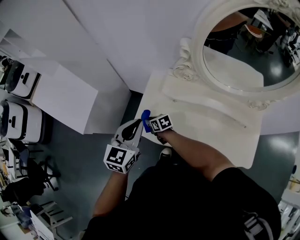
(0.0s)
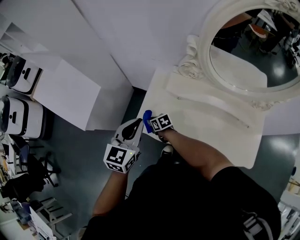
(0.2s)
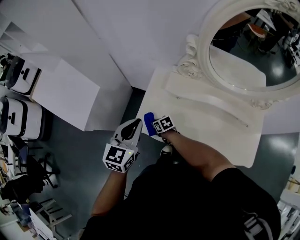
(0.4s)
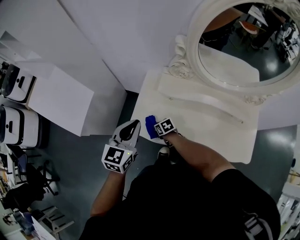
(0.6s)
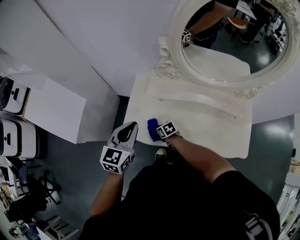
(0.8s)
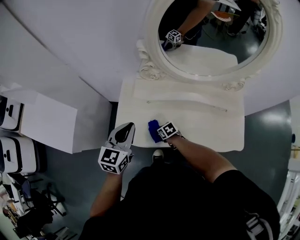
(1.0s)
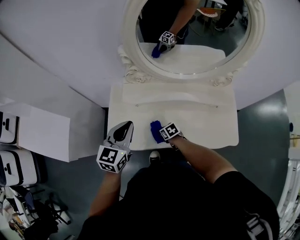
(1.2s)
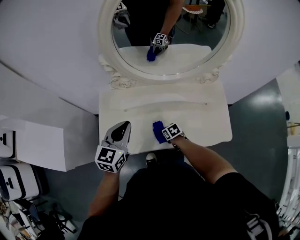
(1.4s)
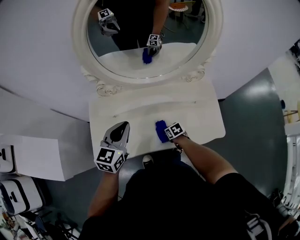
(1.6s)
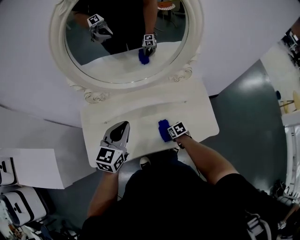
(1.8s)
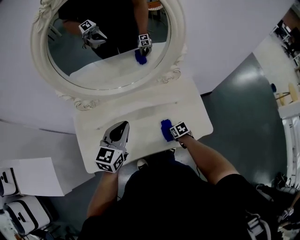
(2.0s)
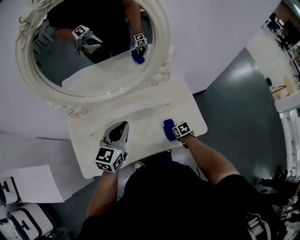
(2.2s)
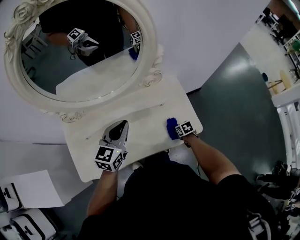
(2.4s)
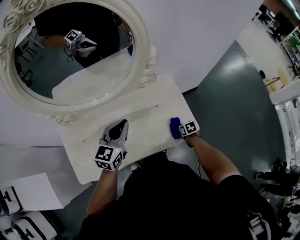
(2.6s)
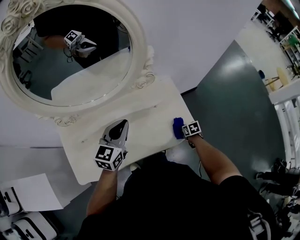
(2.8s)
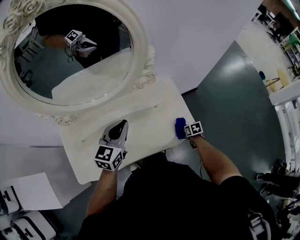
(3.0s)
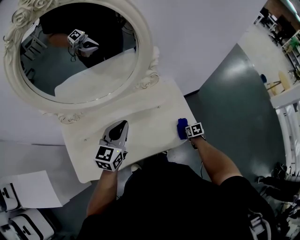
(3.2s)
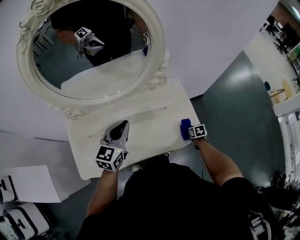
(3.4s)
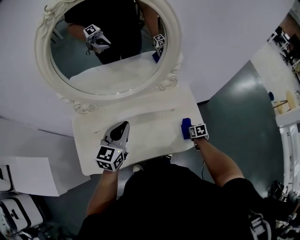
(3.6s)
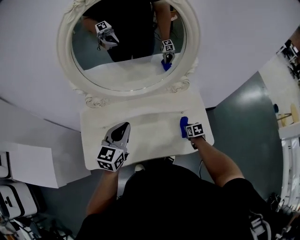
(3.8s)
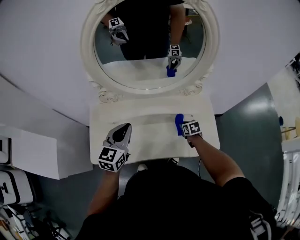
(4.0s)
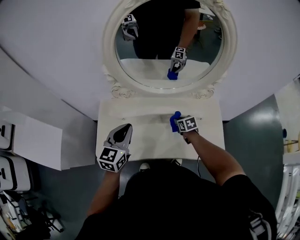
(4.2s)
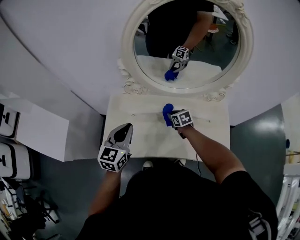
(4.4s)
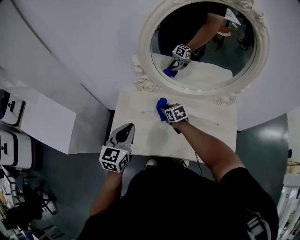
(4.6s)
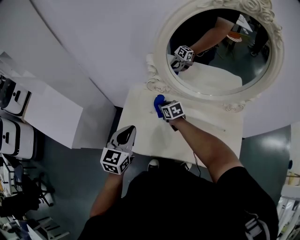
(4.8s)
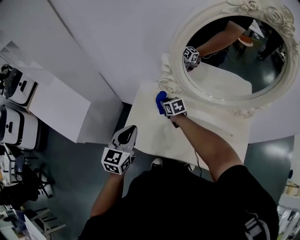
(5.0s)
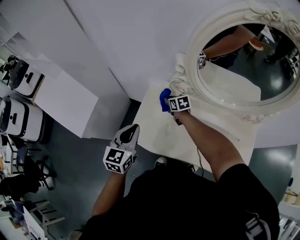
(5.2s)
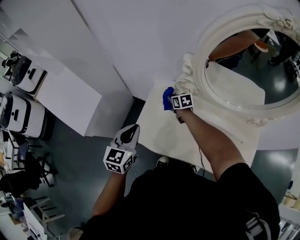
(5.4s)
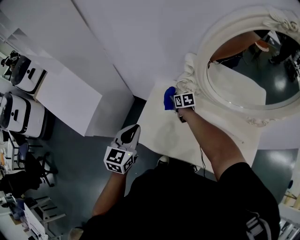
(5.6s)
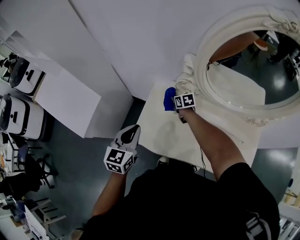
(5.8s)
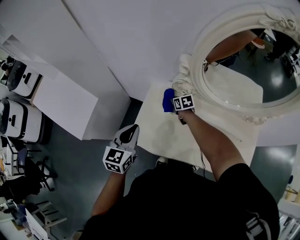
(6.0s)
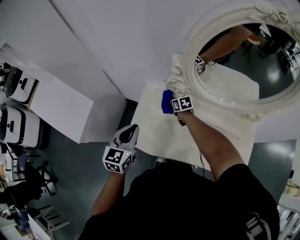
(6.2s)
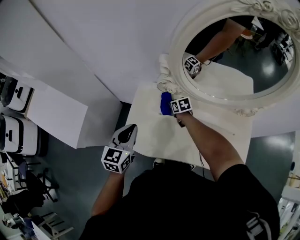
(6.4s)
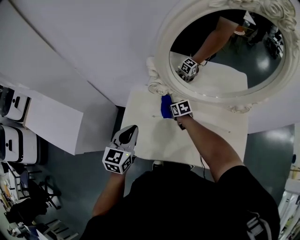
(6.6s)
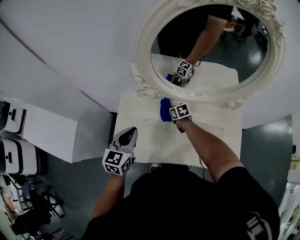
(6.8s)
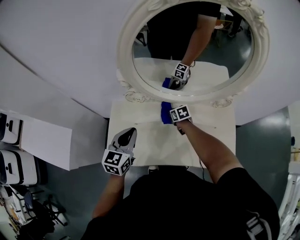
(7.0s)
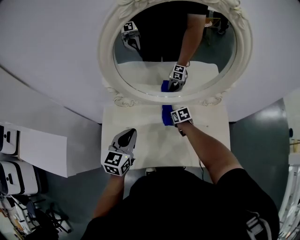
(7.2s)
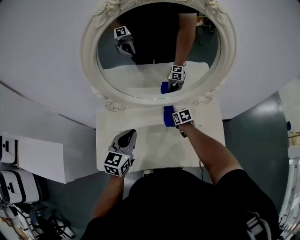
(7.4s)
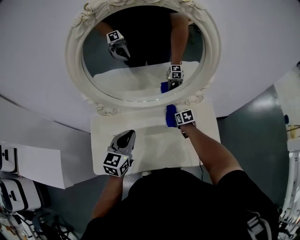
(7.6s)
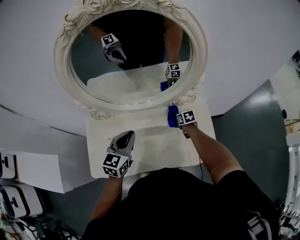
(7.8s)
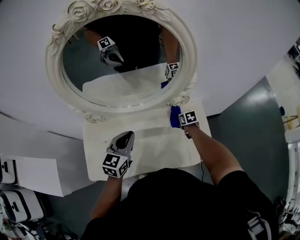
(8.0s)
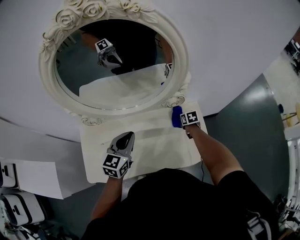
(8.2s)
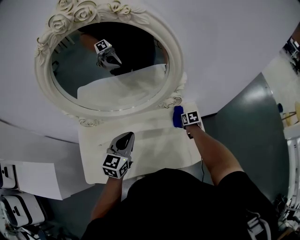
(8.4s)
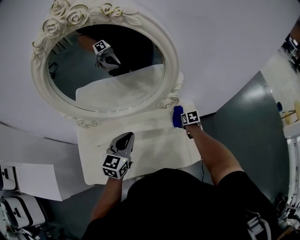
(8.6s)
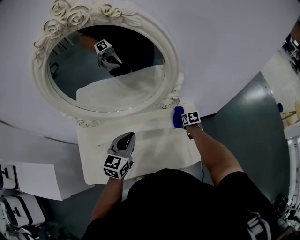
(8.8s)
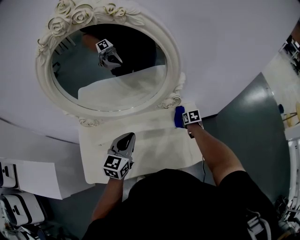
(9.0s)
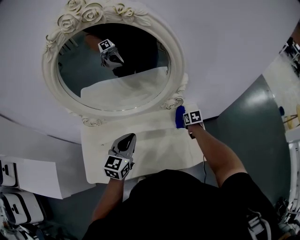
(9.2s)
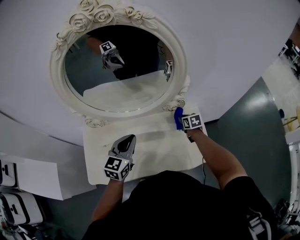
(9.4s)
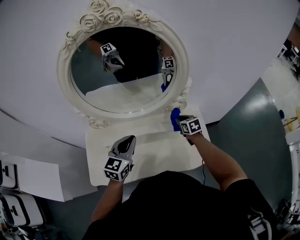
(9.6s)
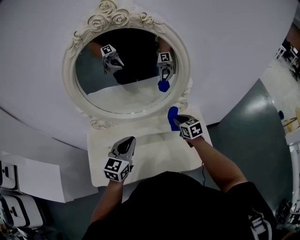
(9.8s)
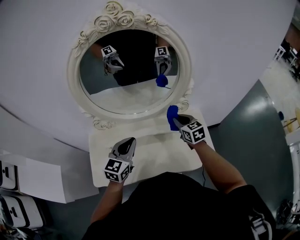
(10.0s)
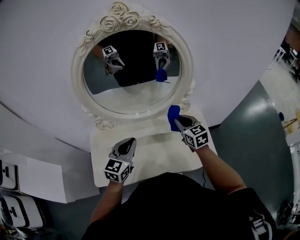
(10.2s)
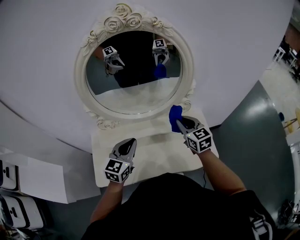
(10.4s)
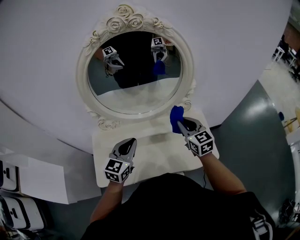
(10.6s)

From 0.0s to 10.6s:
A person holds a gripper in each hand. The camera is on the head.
From 0.0s to 1.6s: The right gripper changes place by approximately 40 cm, and rotates roughly 30 degrees, while the left gripper moves some 25 cm, and rotates approximately 30 degrees.
From 1.6s to 3.0s: The right gripper changes place by some 35 cm, and swivels approximately 30 degrees. Meanwhile the left gripper changes place by roughly 25 cm.
From 3.0s to 4.6s: The left gripper ends up about 35 cm from where it was, and rotates about 30 degrees. Meanwhile the right gripper moves roughly 60 cm, and rotates around the line of its fingers by approximately 40 degrees, counterclockwise from behind.
From 4.6s to 6.0s: The left gripper travels to the left by approximately 15 cm. The right gripper shifts approximately 20 cm to the left, forward and downward.
From 6.0s to 7.6s: The left gripper ends up about 35 cm from where it was, and changes its angle by approximately 30 degrees; the right gripper changes place by about 50 cm, and changes its angle by roughly 30 degrees.
From 7.6s to 9.0s: The right gripper goes approximately 20 cm to the right. Meanwhile the left gripper shifts some 10 cm to the right.
From 9.0s to 10.6s: The right gripper travels upward, to the left and backward by approximately 40 cm, and angles its fingers upward, by about 40 degrees. Meanwhile the left gripper travels to the left and backward by some 10 cm.

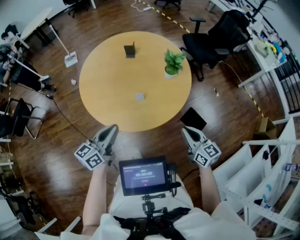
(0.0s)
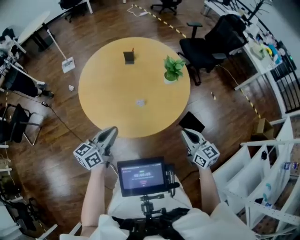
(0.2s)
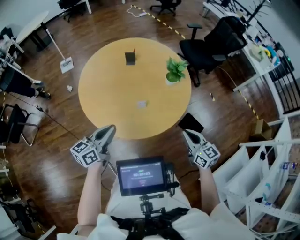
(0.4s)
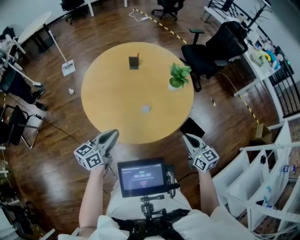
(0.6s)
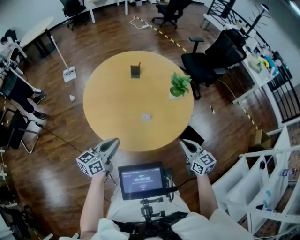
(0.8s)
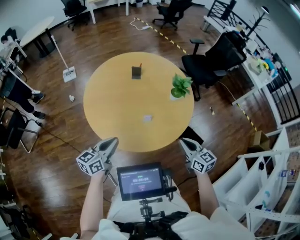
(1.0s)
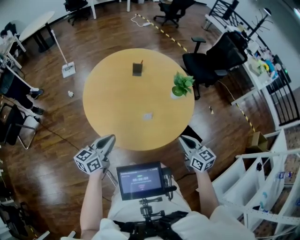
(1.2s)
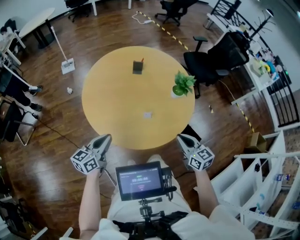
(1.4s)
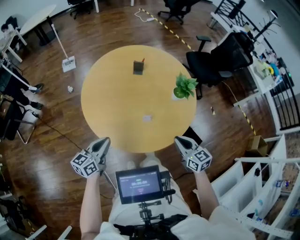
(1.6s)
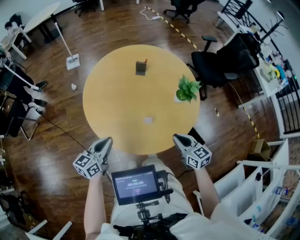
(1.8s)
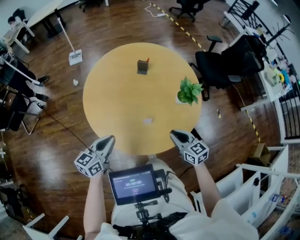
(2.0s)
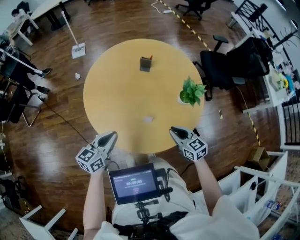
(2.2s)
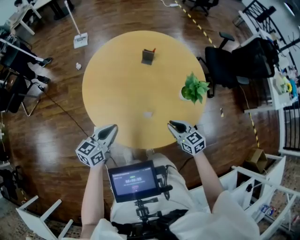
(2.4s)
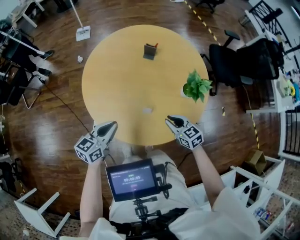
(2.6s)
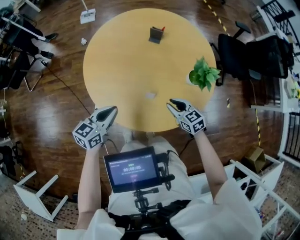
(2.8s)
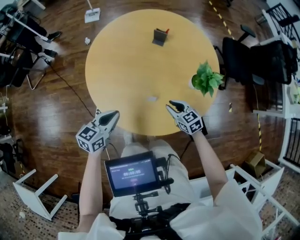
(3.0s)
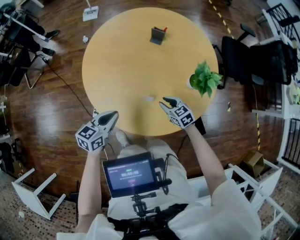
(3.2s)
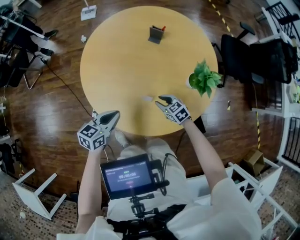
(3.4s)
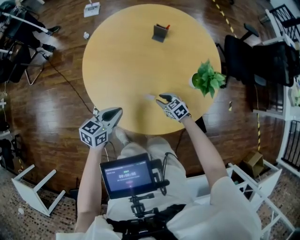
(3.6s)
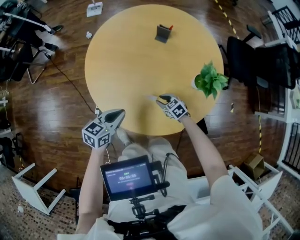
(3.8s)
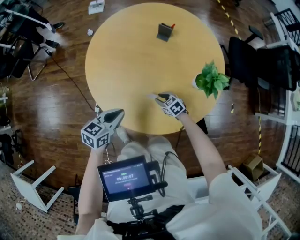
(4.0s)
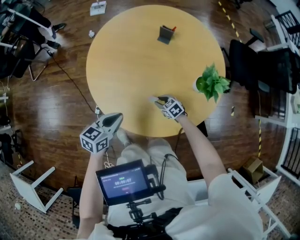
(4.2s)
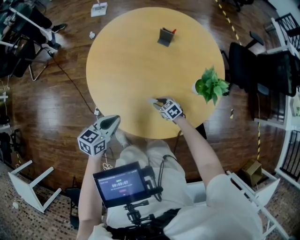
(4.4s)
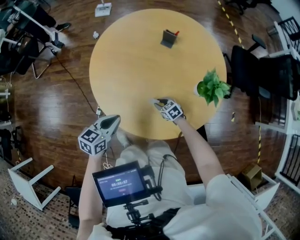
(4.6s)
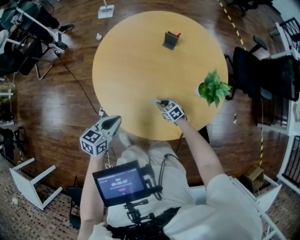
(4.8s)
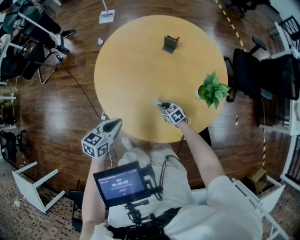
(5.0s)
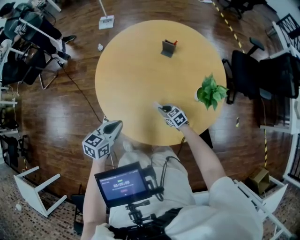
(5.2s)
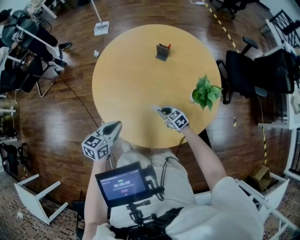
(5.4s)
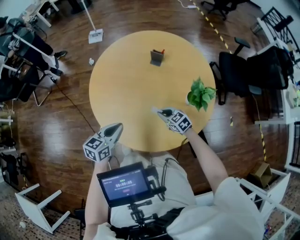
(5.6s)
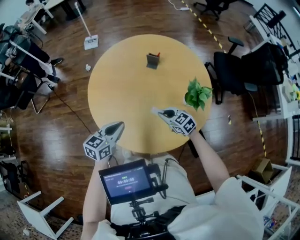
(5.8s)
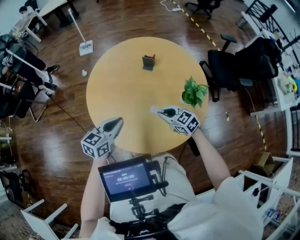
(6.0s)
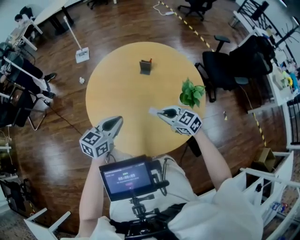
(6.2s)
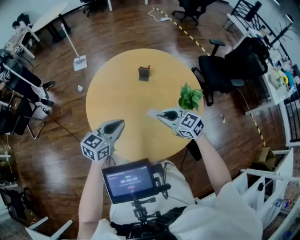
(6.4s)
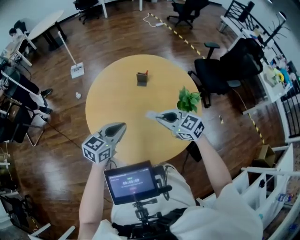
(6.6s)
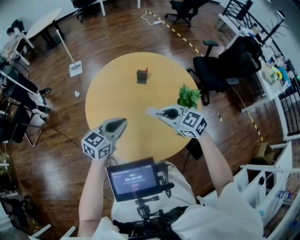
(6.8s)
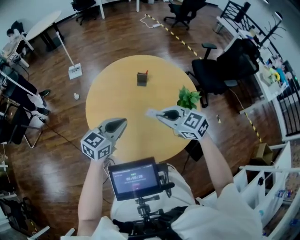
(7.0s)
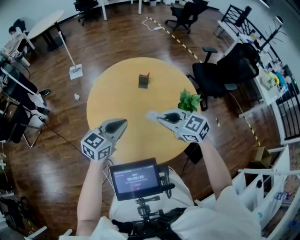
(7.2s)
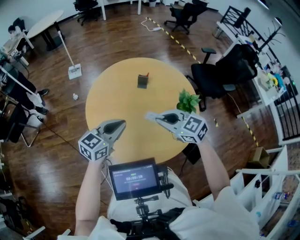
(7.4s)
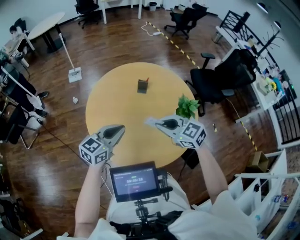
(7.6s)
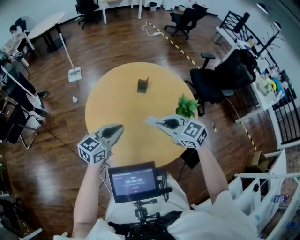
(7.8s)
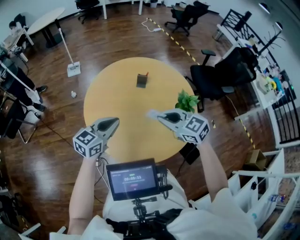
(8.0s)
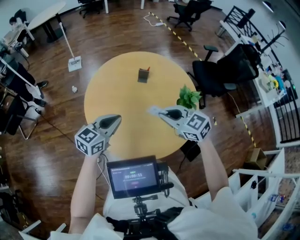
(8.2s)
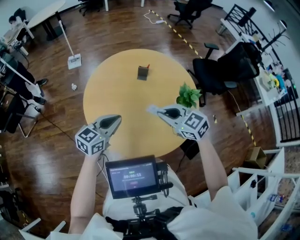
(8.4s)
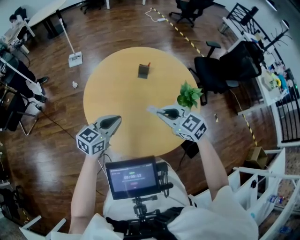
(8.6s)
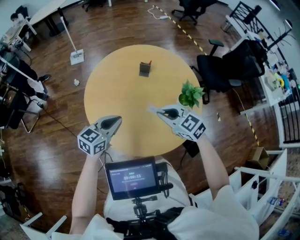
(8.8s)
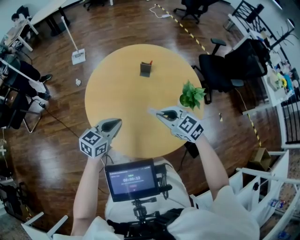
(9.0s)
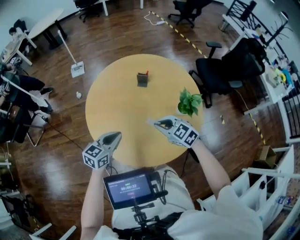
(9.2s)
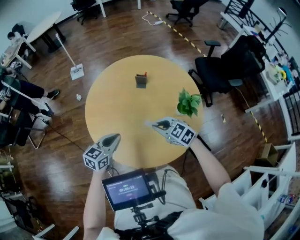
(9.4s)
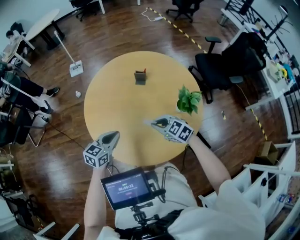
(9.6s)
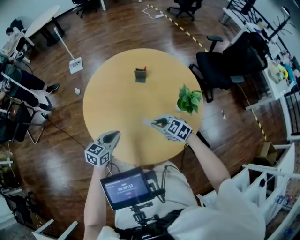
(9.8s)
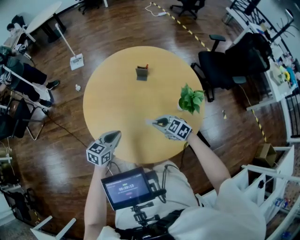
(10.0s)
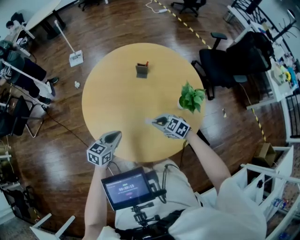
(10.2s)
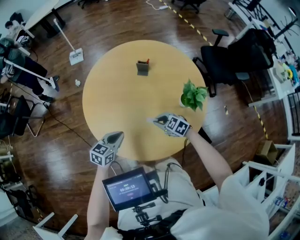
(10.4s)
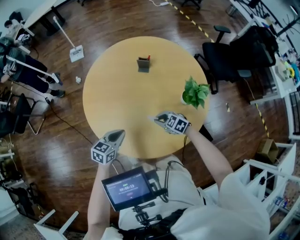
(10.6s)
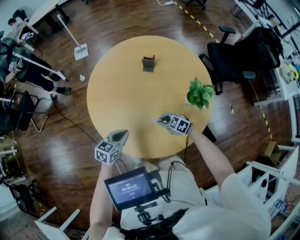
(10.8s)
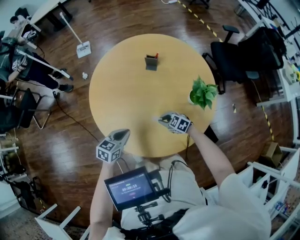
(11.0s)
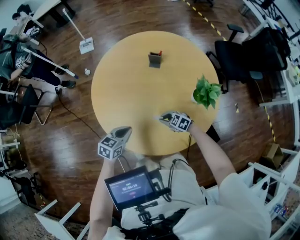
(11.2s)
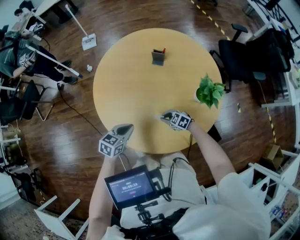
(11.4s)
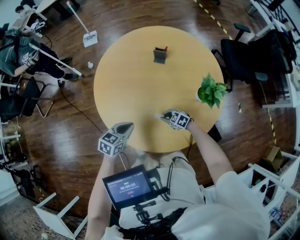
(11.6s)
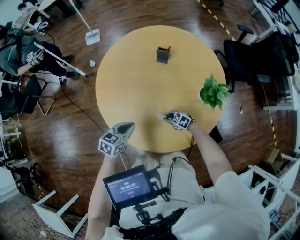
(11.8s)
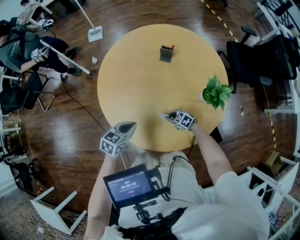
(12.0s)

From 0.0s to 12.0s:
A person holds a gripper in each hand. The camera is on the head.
From 0.0s to 1.6s: The right gripper is displaced to the left and forward by approximately 15 cm. The left gripper goes some 15 cm to the left, downward and forward.
From 1.6s to 3.0s: The right gripper goes some 25 cm downward and forward, changes its angle by approximately 30 degrees, and opens. Meanwhile the left gripper moves to the right and downward, some 10 cm.
From 3.0s to 4.4s: The right gripper heads downward, covering some 15 cm.
From 4.4s to 6.0s: The right gripper shifts approximately 25 cm upward, rotates approximately 20 degrees, and closes up, while the left gripper travels upward and forward by approximately 10 cm.
From 6.0s to 7.6s: The left gripper heads upward, covering approximately 10 cm. The right gripper shifts some 20 cm upward.
From 7.6s to 9.0s: The two grippers go roughly 5 cm downward.
From 9.0s to 10.4s: The right gripper is displaced downward by some 20 cm; the left gripper goes about 10 cm downward.
From 10.4s to 12.0s: The right gripper shifts roughly 20 cm downward.

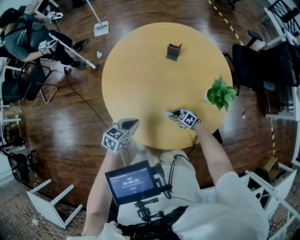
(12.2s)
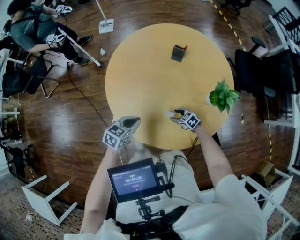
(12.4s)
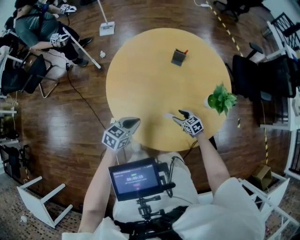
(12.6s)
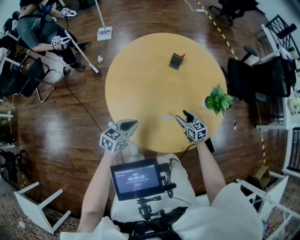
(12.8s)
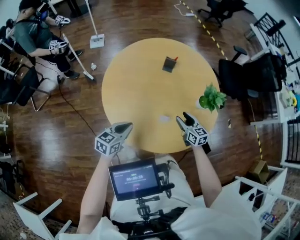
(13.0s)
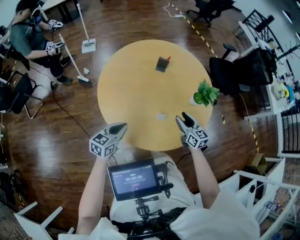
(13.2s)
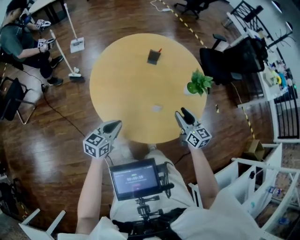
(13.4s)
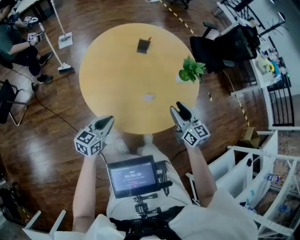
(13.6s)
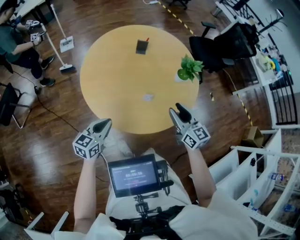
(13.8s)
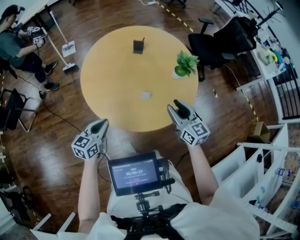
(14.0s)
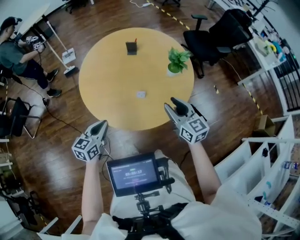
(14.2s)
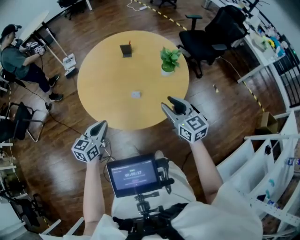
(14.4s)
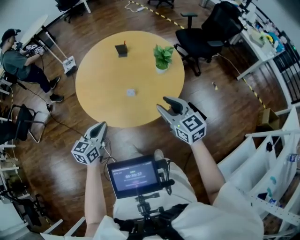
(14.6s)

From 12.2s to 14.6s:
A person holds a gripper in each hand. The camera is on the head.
From 12.2s to 13.4s: The right gripper heads upward, covering some 35 cm, points its fingers about 30 degrees further upward, and opens. Meanwhile the left gripper shifts by approximately 15 cm.
From 13.4s to 14.6s: The left gripper travels to the right, backward and upward by about 20 cm. The right gripper moves backward, upward and to the right, approximately 20 cm.
